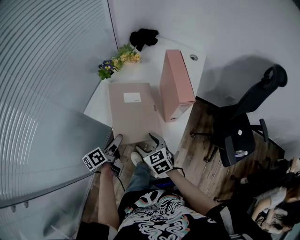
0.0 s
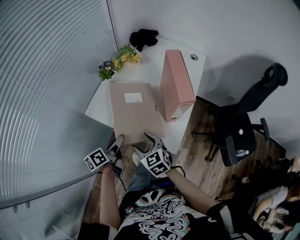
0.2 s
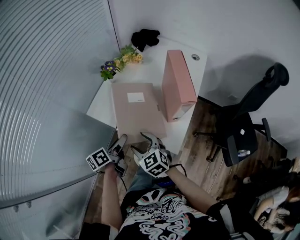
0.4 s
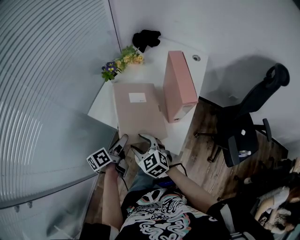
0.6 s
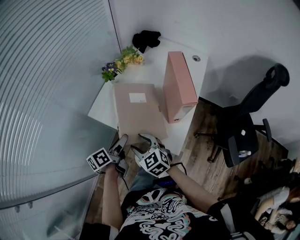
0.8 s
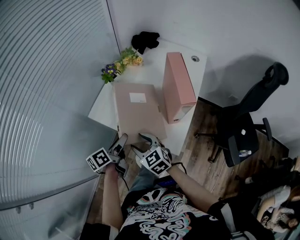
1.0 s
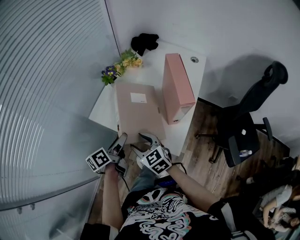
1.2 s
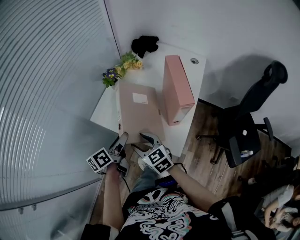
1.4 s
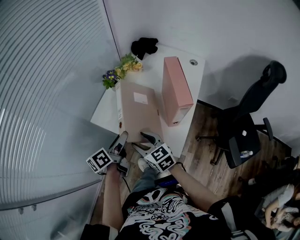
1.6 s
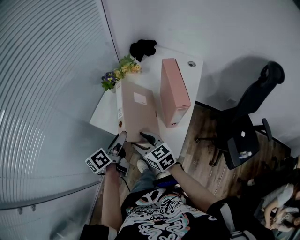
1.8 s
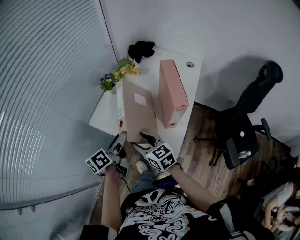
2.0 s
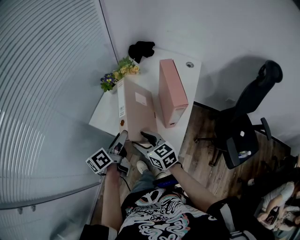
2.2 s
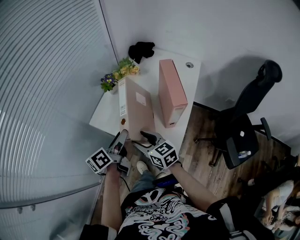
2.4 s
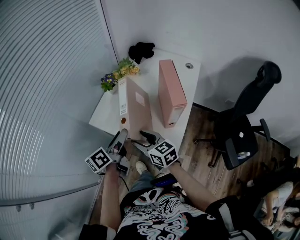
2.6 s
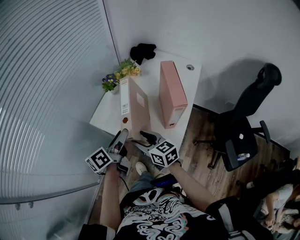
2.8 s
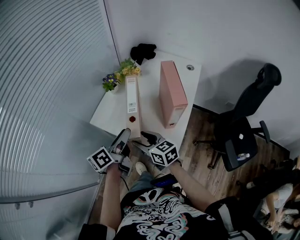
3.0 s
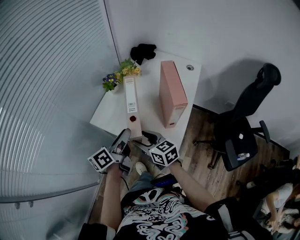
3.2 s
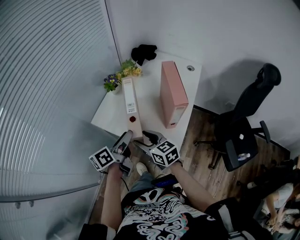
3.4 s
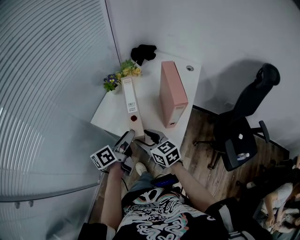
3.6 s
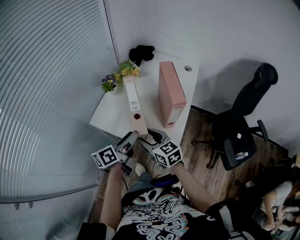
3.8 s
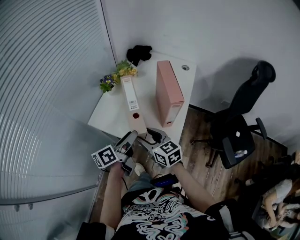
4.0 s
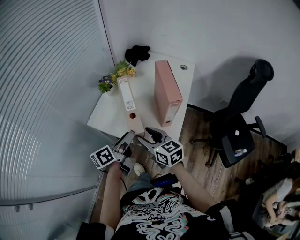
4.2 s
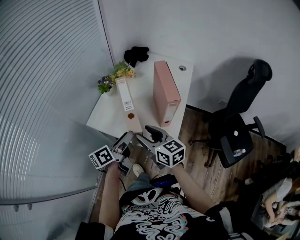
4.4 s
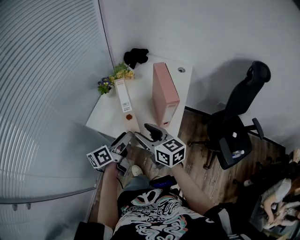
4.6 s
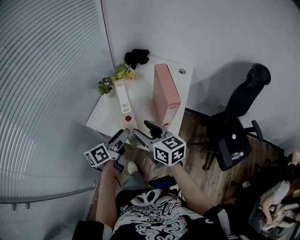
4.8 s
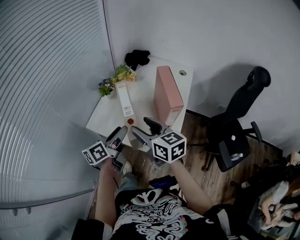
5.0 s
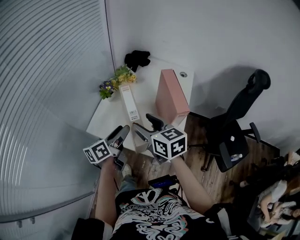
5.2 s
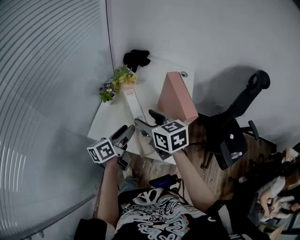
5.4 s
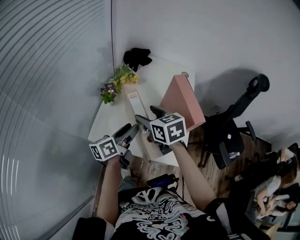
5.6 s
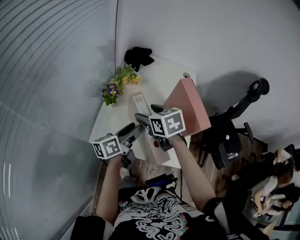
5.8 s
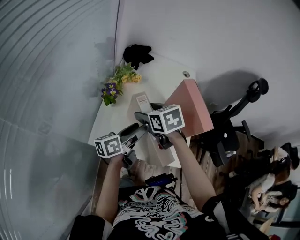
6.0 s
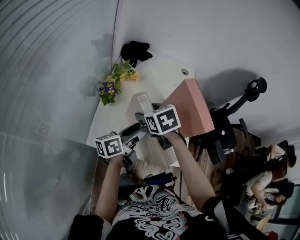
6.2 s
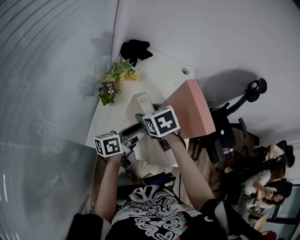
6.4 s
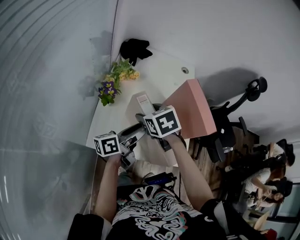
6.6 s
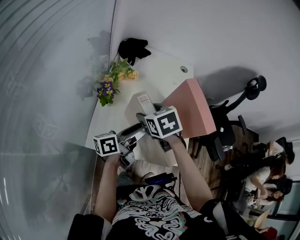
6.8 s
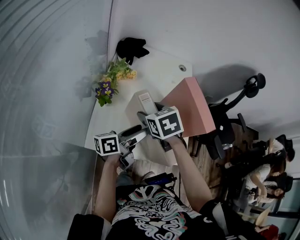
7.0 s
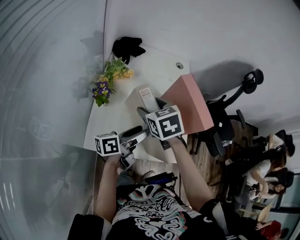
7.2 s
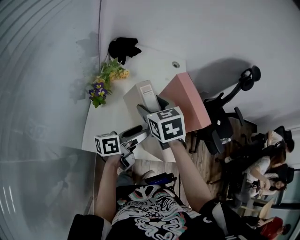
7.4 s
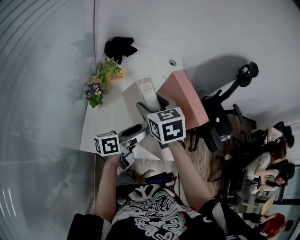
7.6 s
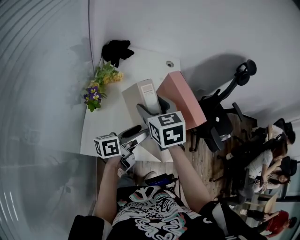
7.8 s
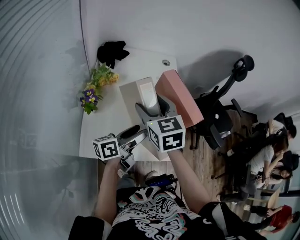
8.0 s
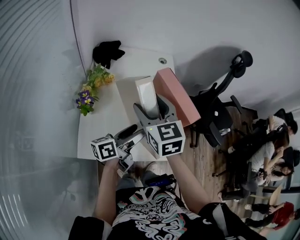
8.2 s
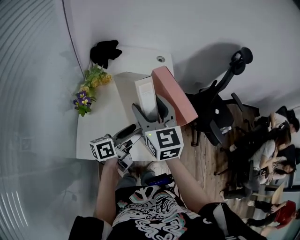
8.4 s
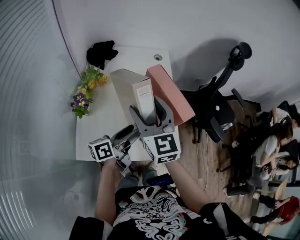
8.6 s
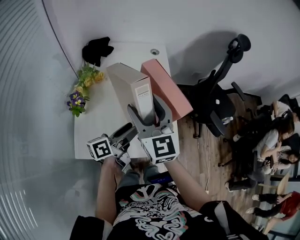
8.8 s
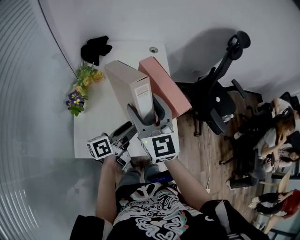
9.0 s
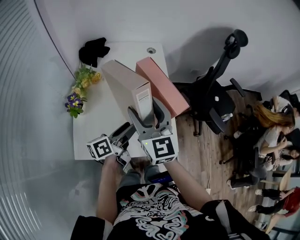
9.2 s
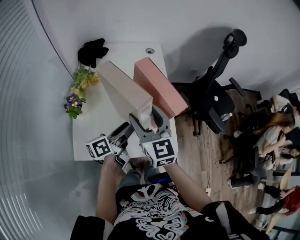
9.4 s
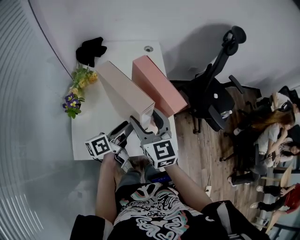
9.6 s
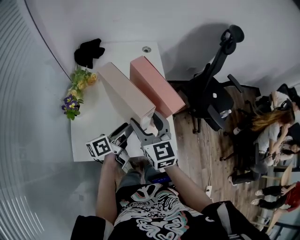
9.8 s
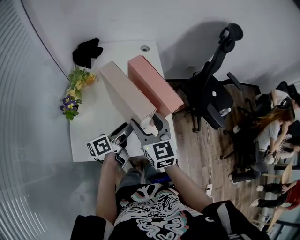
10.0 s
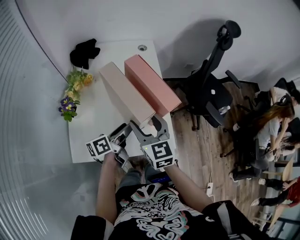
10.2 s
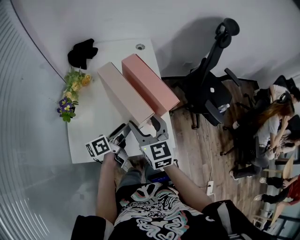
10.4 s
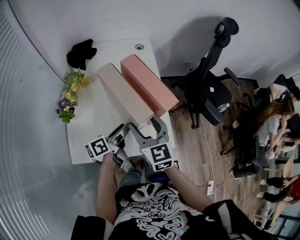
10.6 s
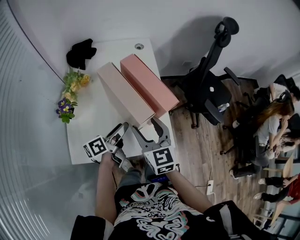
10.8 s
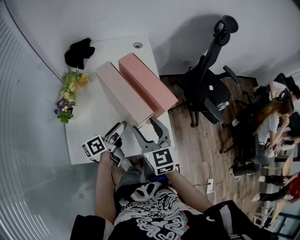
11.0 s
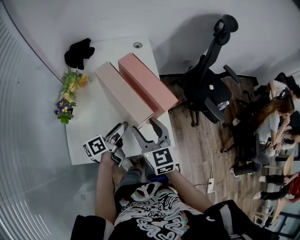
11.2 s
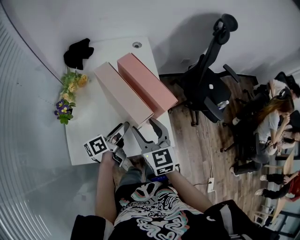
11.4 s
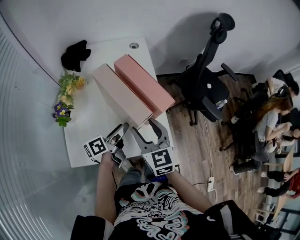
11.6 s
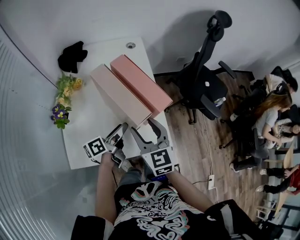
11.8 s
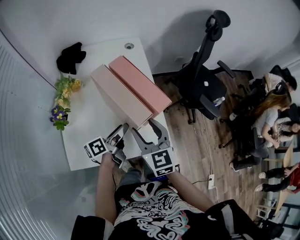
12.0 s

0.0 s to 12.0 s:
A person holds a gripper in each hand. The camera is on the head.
0.0 to 1.6 s: Both grippers move upward, approximately 5 cm.
1.6 to 3.0 s: The left gripper is displaced upward by about 5 cm.
3.0 to 4.4 s: The right gripper is displaced upward by roughly 5 cm.
4.4 to 6.0 s: The right gripper moves forward and to the left, some 25 cm, and tilts its fingers approximately 30 degrees downward, while the left gripper goes approximately 15 cm forward.
6.0 to 7.6 s: The right gripper shifts by about 5 cm, and turns by some 20 degrees.
7.6 to 9.0 s: The right gripper is displaced to the right by approximately 10 cm, and tips its fingers upward by about 40 degrees.
9.0 to 10.4 s: The right gripper goes roughly 10 cm downward; the left gripper goes some 5 cm downward.
10.4 to 12.0 s: The grippers make only small movements.

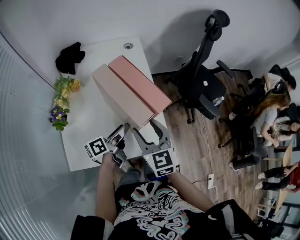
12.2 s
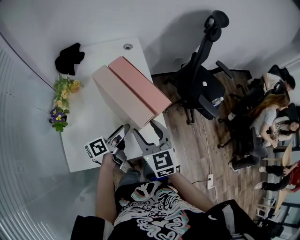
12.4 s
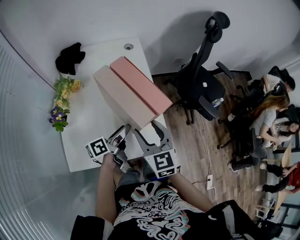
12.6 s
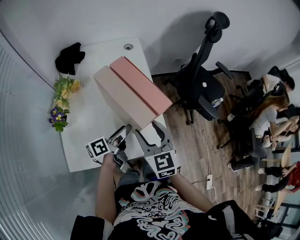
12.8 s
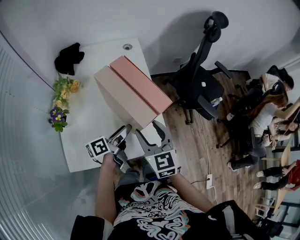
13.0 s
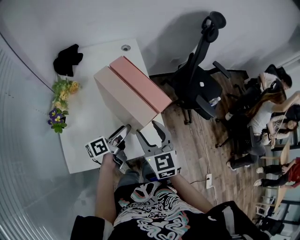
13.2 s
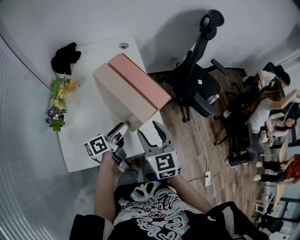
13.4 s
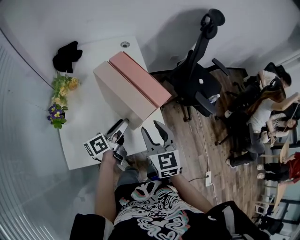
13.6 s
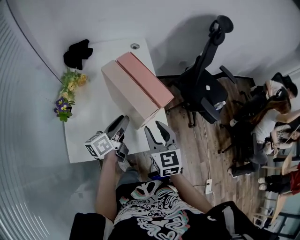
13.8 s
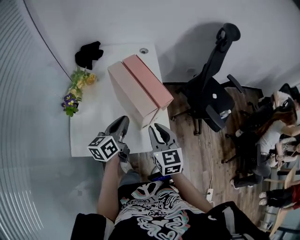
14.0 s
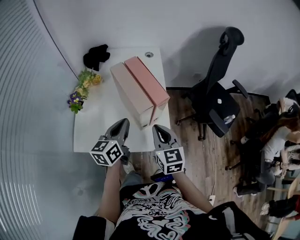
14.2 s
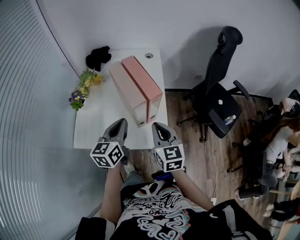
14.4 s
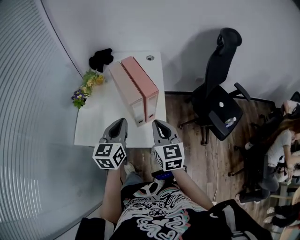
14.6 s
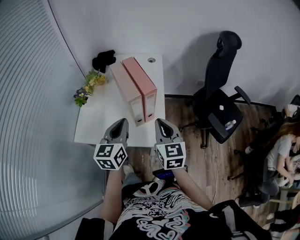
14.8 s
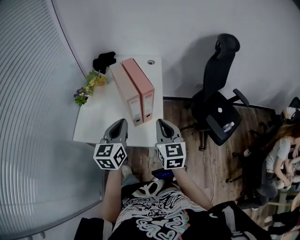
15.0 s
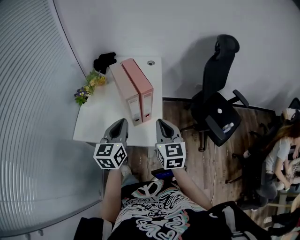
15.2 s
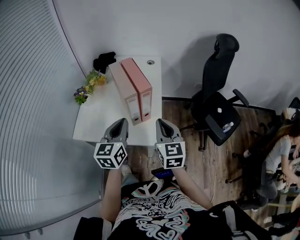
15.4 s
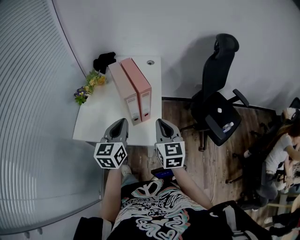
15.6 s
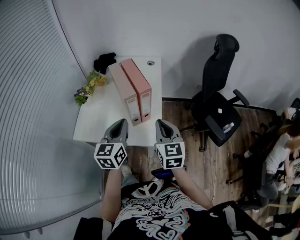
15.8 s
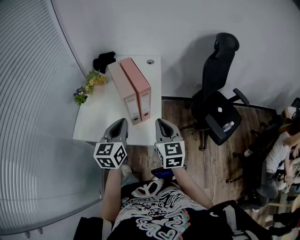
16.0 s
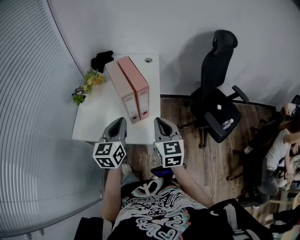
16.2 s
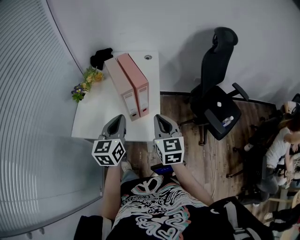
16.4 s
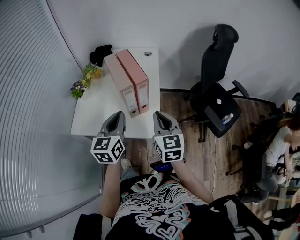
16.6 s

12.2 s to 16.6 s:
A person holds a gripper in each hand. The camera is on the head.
12.2 to 13.6 s: The grippers make only small movements.
13.6 to 15.2 s: The left gripper travels upward and backward by some 20 cm, rotates around the line of its fingers by about 50 degrees, clockwise from behind, and closes its fingers, while the right gripper travels to the right, upward and backward by about 15 cm, and closes up.
15.2 to 16.6 s: The two grippers keep their place.

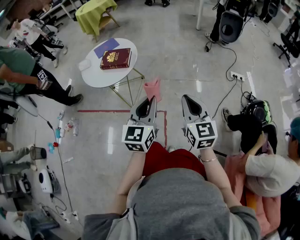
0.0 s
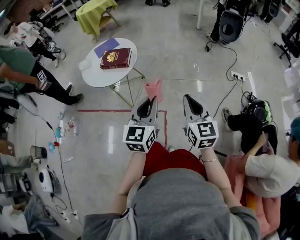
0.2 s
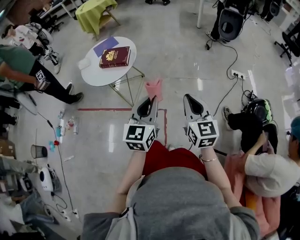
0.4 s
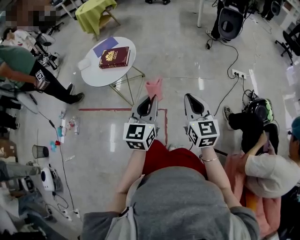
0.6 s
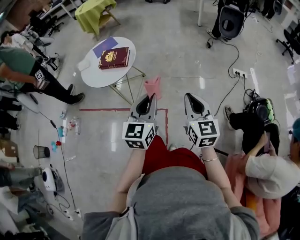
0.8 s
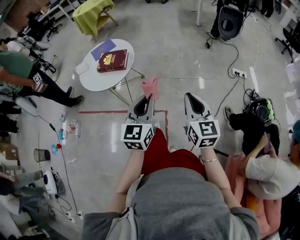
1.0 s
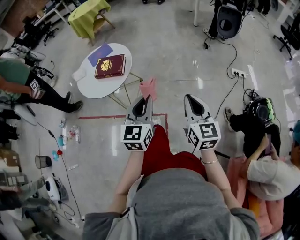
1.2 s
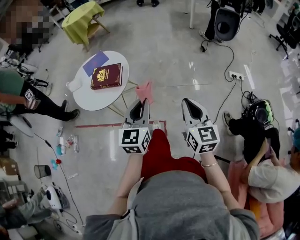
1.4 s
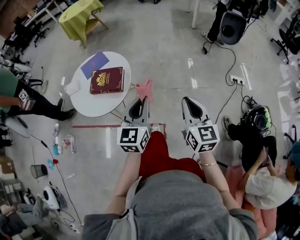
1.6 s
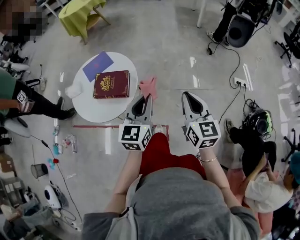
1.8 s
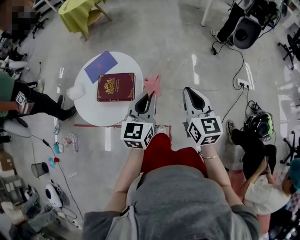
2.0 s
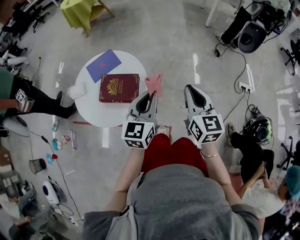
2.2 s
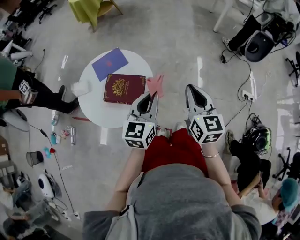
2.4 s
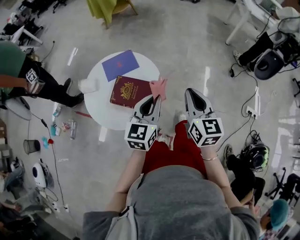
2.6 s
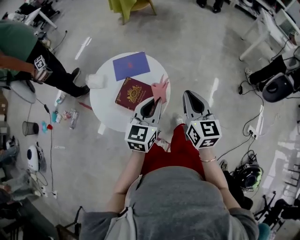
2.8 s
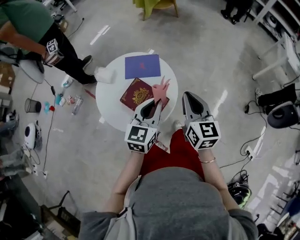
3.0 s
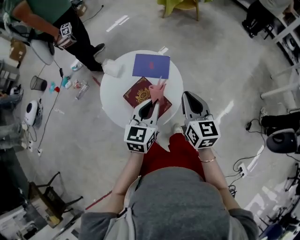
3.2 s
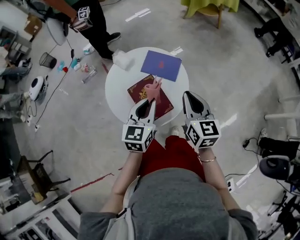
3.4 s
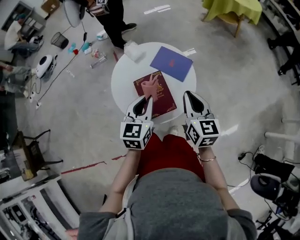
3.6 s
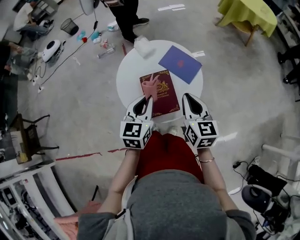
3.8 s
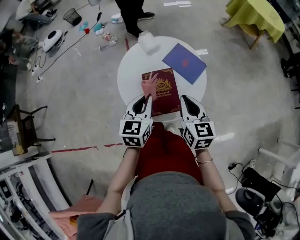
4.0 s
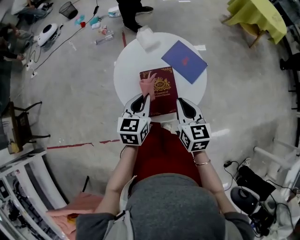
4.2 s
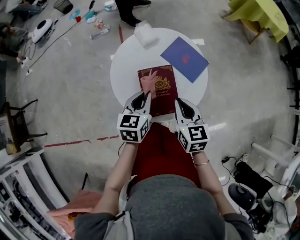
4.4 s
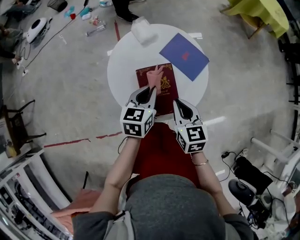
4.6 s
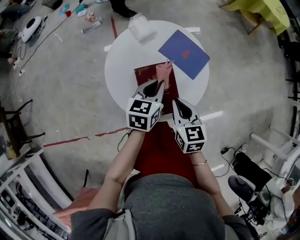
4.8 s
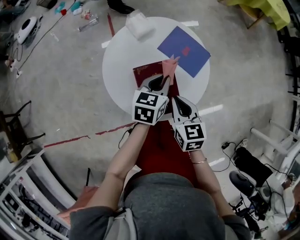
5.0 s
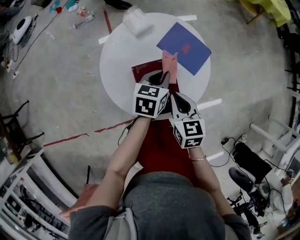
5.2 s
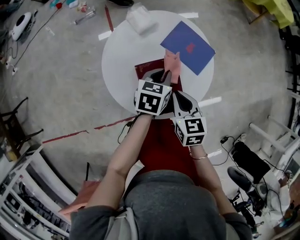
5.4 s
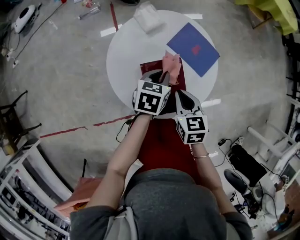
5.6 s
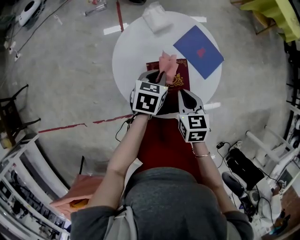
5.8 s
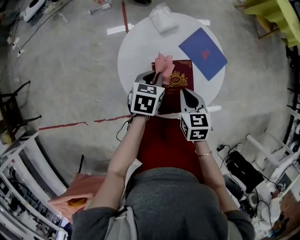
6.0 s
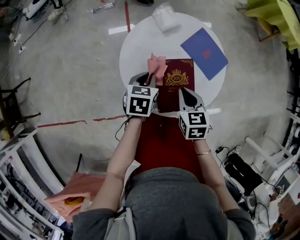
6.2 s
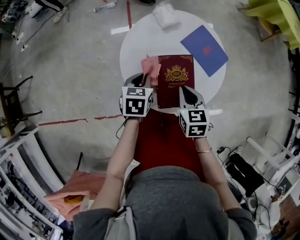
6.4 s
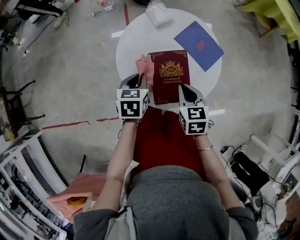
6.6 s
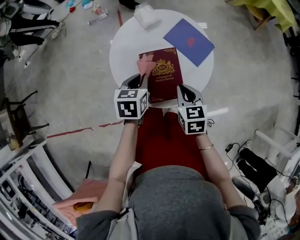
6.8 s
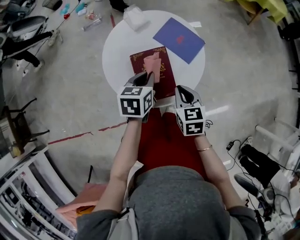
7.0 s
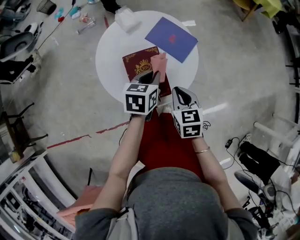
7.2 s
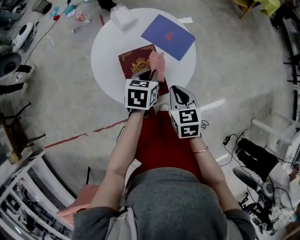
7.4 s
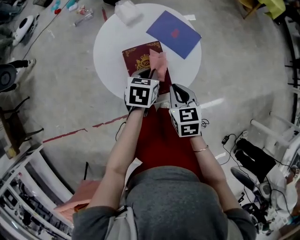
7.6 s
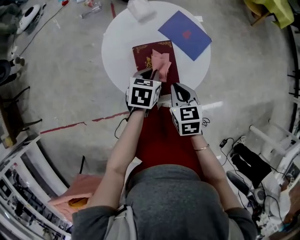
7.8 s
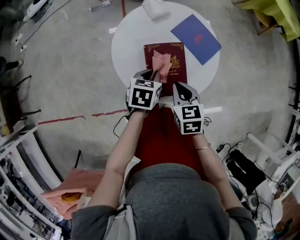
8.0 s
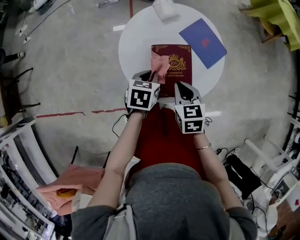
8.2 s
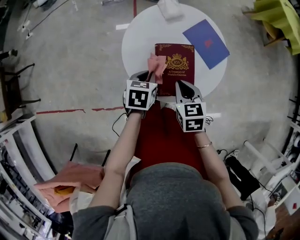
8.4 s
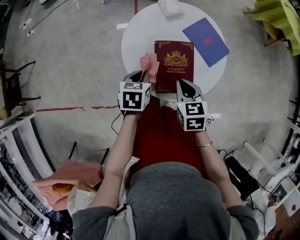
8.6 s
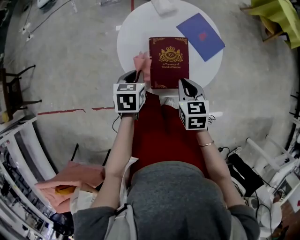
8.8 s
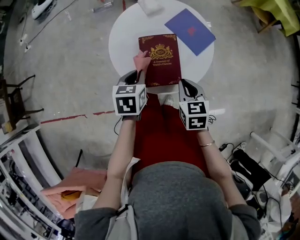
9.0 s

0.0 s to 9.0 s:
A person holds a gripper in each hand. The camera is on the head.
0.0 to 1.6 s: Both grippers move forward, some 20 cm.
1.6 to 3.0 s: The right gripper shifts by about 40 cm, and turns by roughly 30 degrees. Meanwhile the left gripper shifts by some 30 cm, and swivels approximately 30 degrees.
3.0 to 4.4 s: The left gripper moves approximately 15 cm, and turns by about 50 degrees. Meanwhile the right gripper shifts by roughly 15 cm, and turns by approximately 50 degrees.
4.4 to 6.0 s: The right gripper shifts roughly 5 cm downward; the left gripper shifts roughly 10 cm downward and forward, and moves about 5 cm to the right and comes back.
6.0 to 7.6 s: The left gripper heads to the right, covering approximately 10 cm. The right gripper shifts some 10 cm to the right and backward.
7.6 to 9.0 s: The left gripper moves to the left and backward, about 10 cm. Meanwhile the right gripper reaches about 10 cm to the left, then returns.
